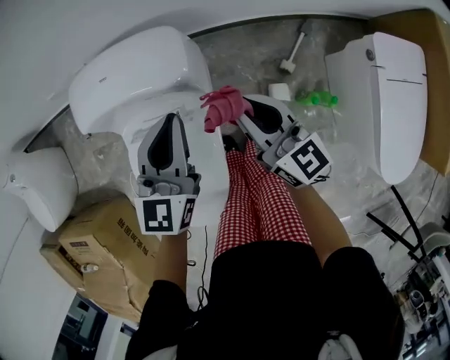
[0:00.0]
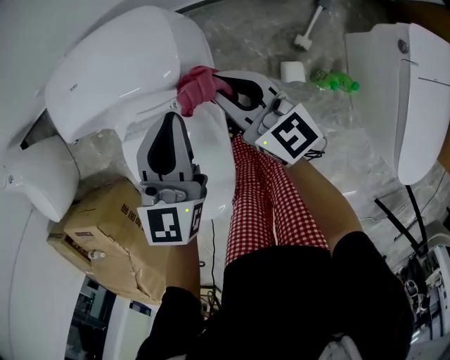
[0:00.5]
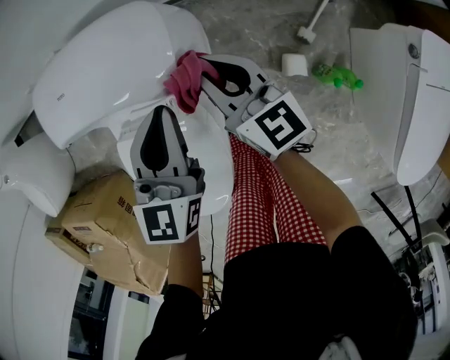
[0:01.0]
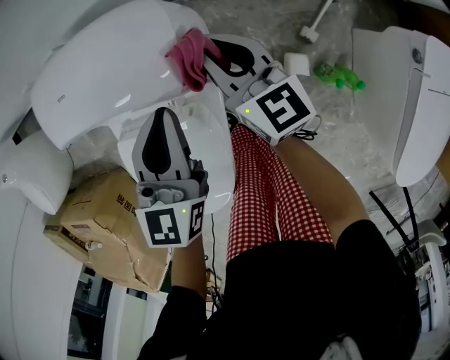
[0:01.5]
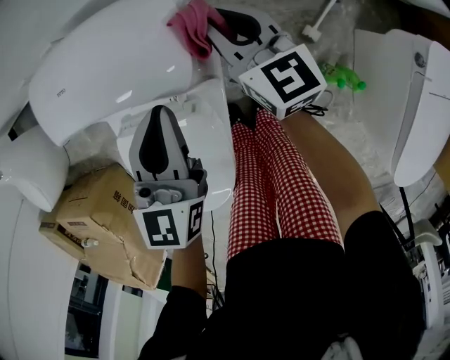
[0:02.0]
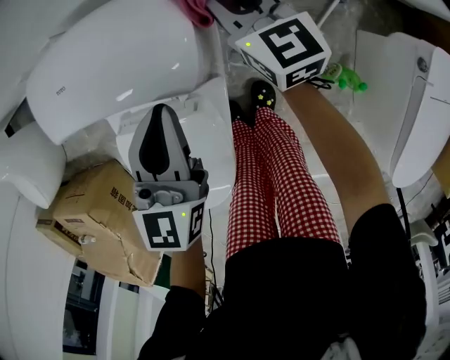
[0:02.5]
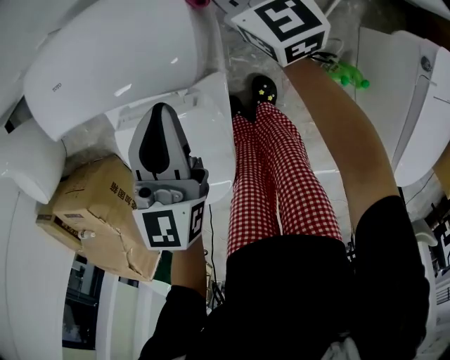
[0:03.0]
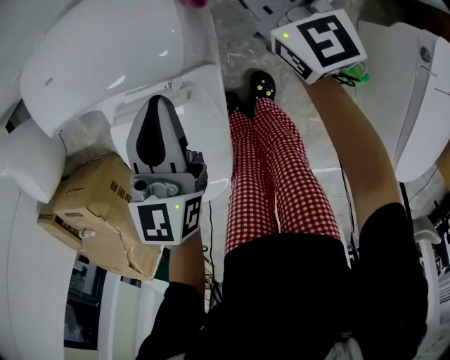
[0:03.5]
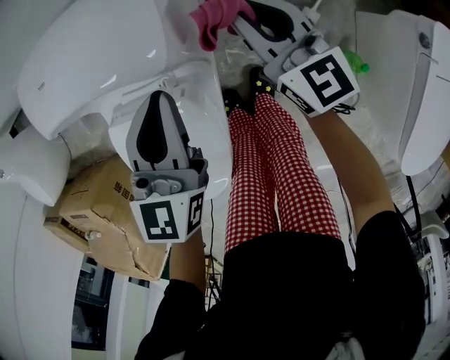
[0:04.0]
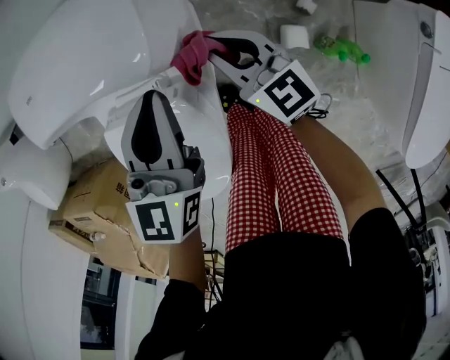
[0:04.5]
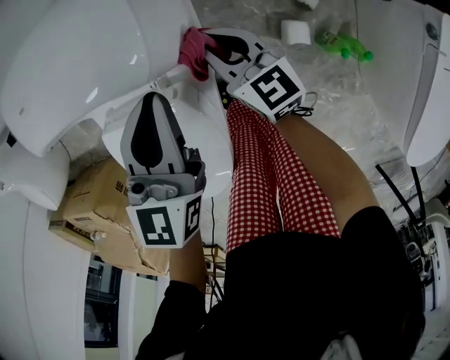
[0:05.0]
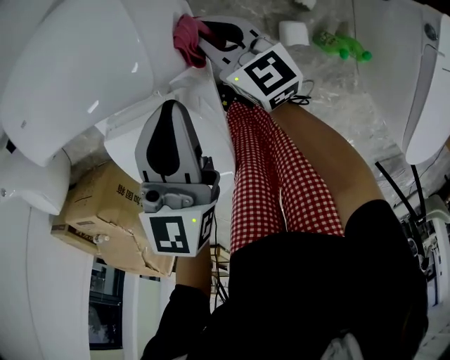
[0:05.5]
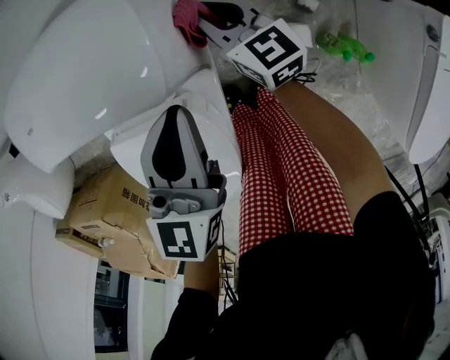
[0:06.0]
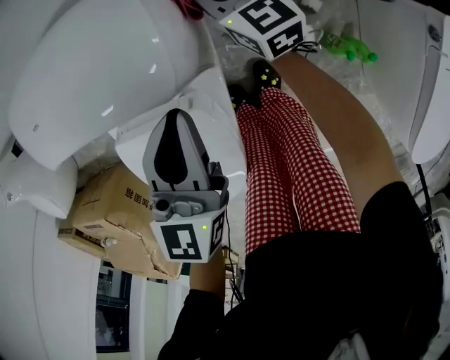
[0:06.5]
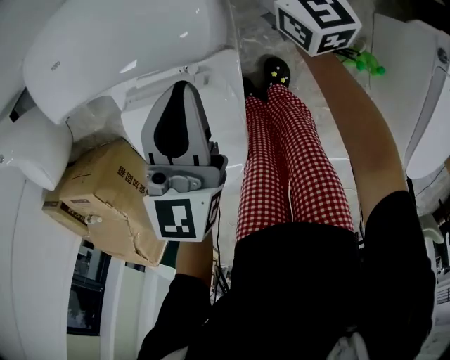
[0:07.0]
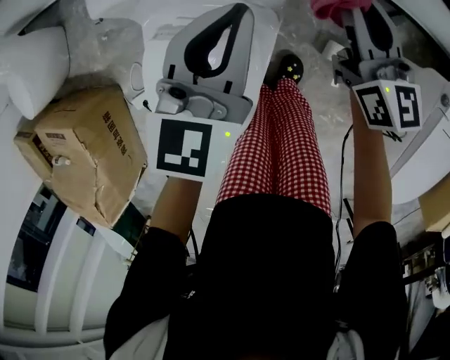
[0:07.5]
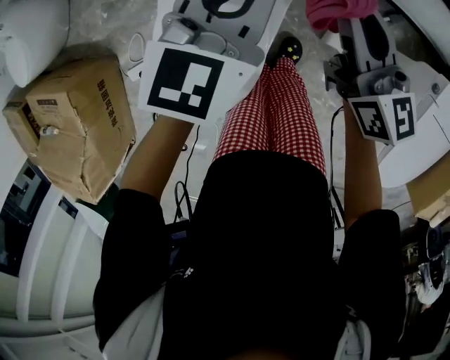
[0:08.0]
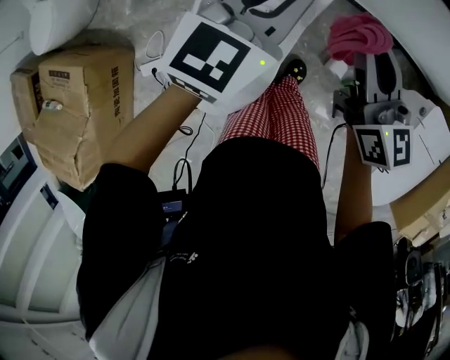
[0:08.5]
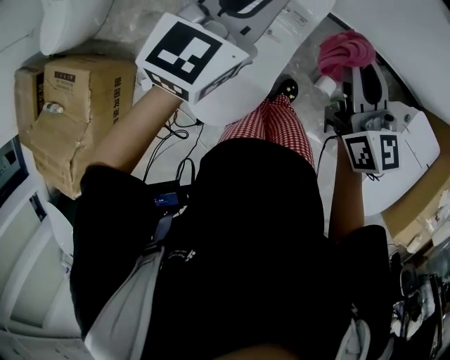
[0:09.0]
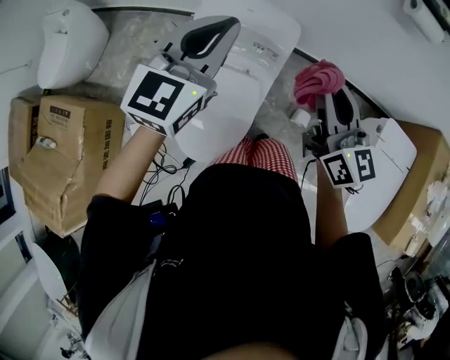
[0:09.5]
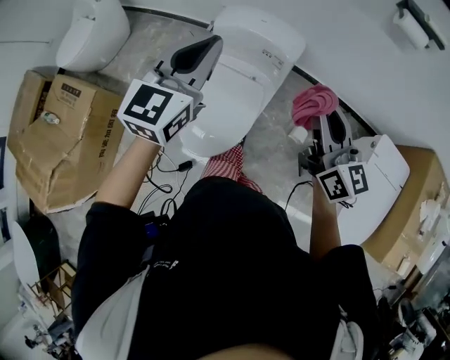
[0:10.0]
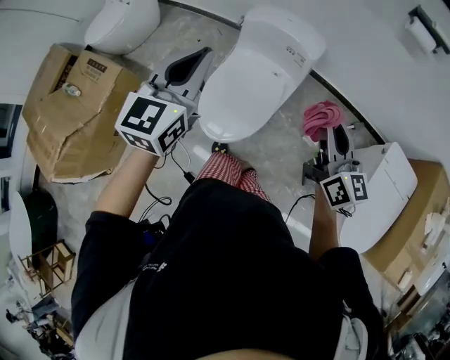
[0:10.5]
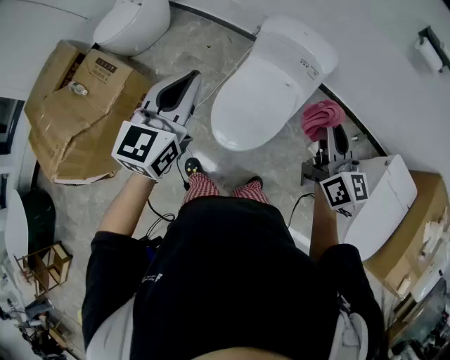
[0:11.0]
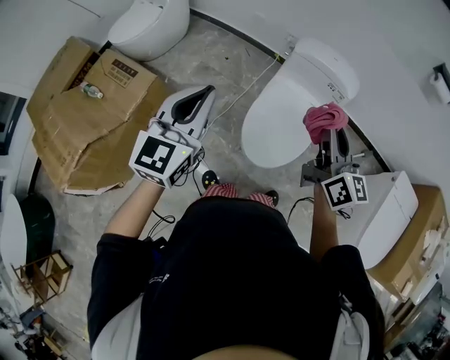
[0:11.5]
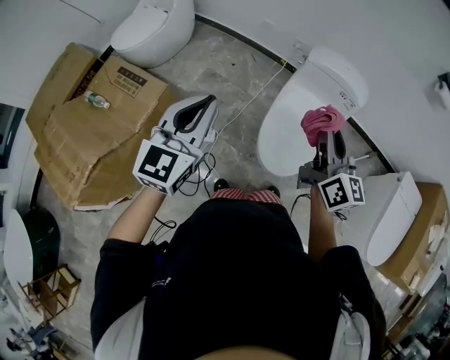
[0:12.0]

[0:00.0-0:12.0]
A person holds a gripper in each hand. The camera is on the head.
0:00.0 to 0:02.0: The right gripper goes roughly 20 cm forward and downward. Meanwhile the left gripper is displaced downward and forward by roughly 10 cm.
0:02.0 to 0:04.0: The right gripper shifts roughly 10 cm backward and to the right.
0:04.0 to 0:06.0: The right gripper travels downward and to the left by about 10 cm.
0:06.0 to 0:08.0: The right gripper goes roughly 30 cm upward. The left gripper goes some 15 cm upward.
0:08.0 to 0:10.0: The right gripper travels backward and upward by some 30 cm, while the left gripper travels upward, backward and to the left by about 35 cm.
0:10.0 to 0:12.0: The left gripper is displaced to the left and backward by roughly 40 cm. The right gripper heads to the left, covering about 35 cm.

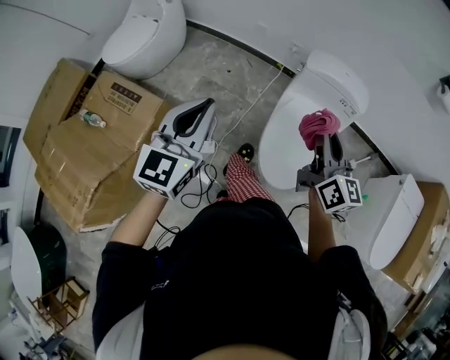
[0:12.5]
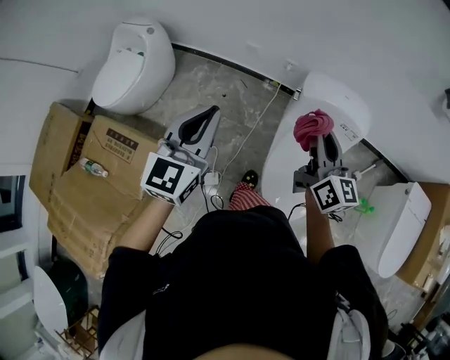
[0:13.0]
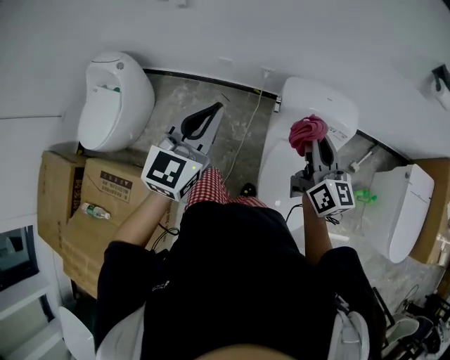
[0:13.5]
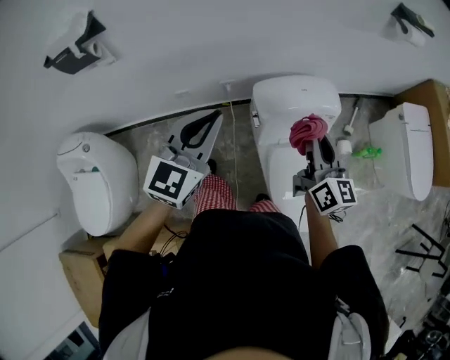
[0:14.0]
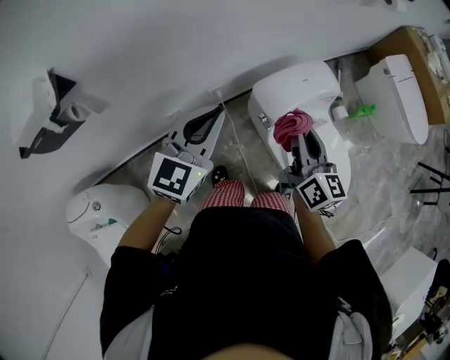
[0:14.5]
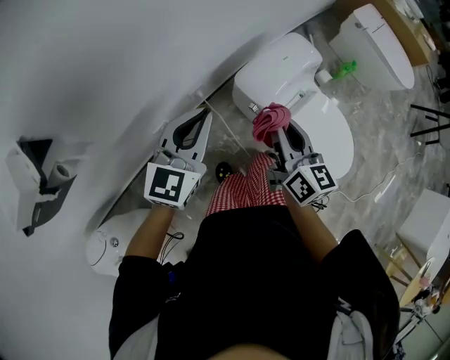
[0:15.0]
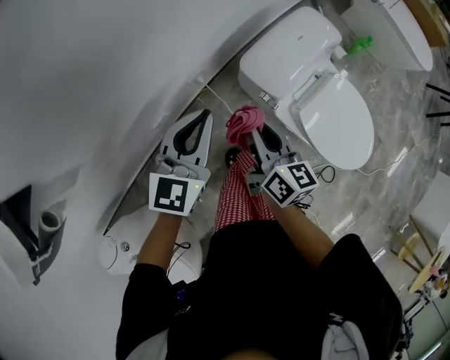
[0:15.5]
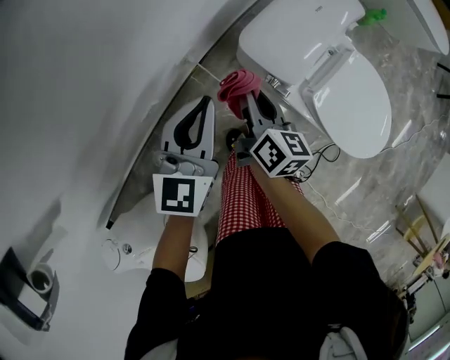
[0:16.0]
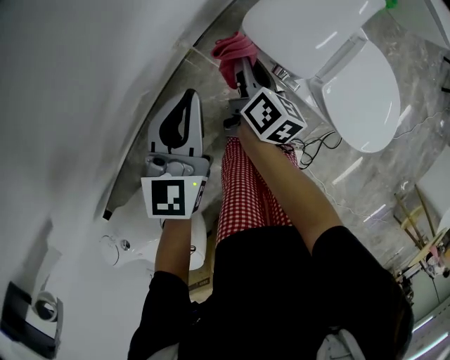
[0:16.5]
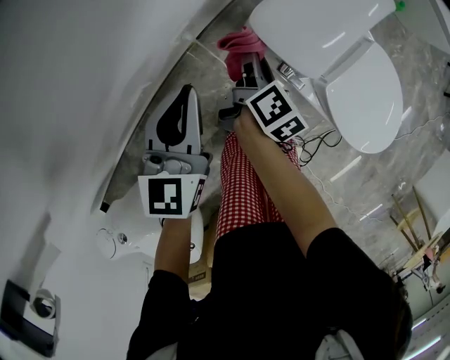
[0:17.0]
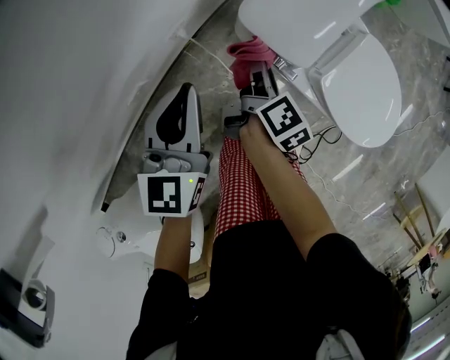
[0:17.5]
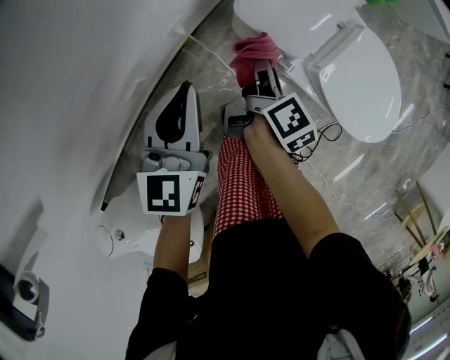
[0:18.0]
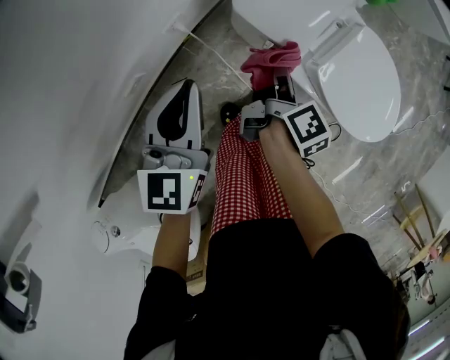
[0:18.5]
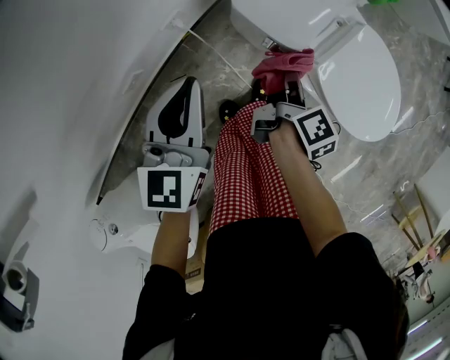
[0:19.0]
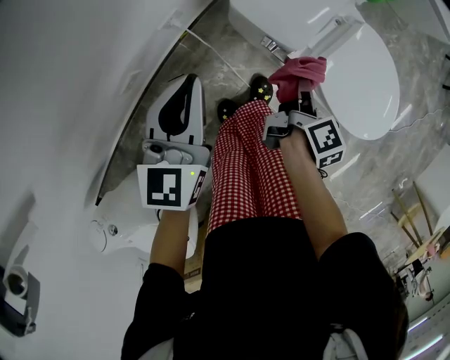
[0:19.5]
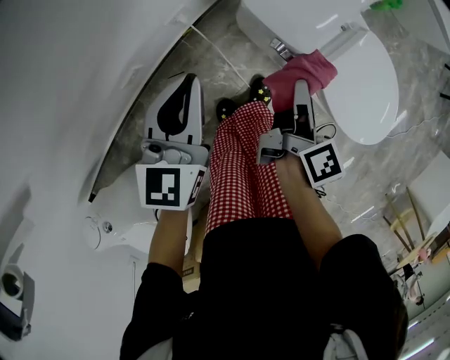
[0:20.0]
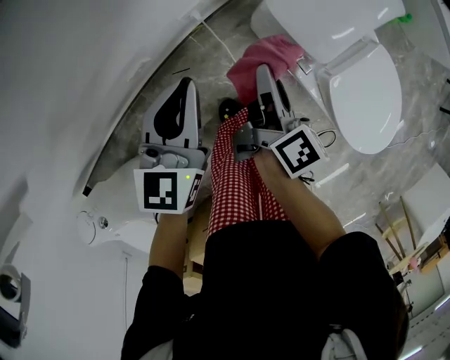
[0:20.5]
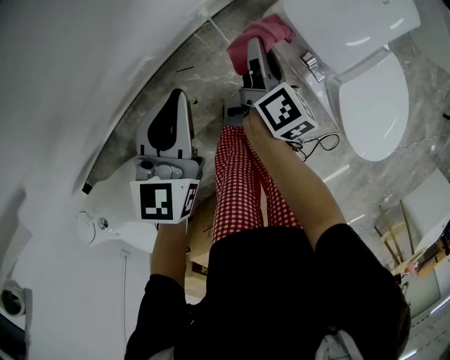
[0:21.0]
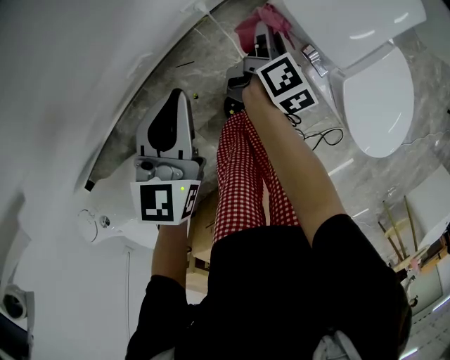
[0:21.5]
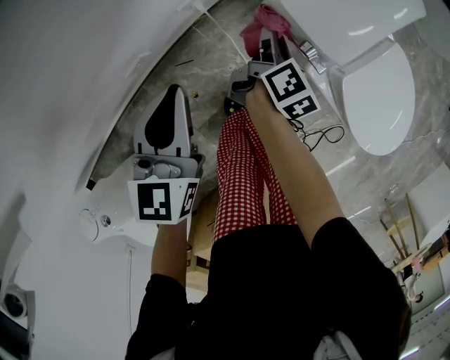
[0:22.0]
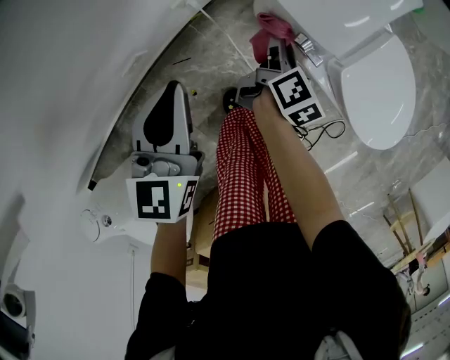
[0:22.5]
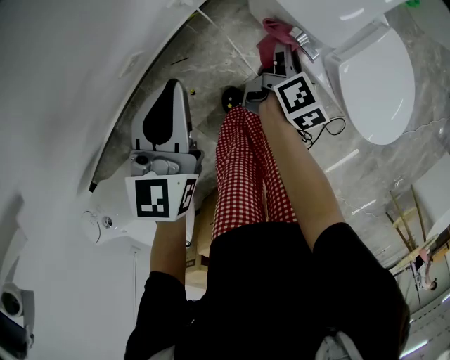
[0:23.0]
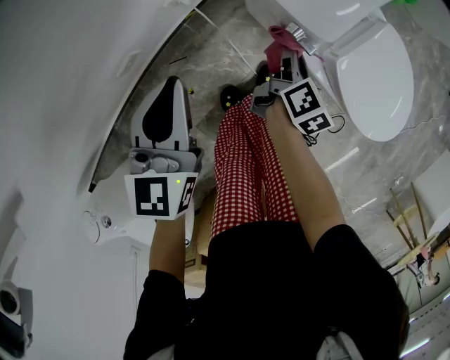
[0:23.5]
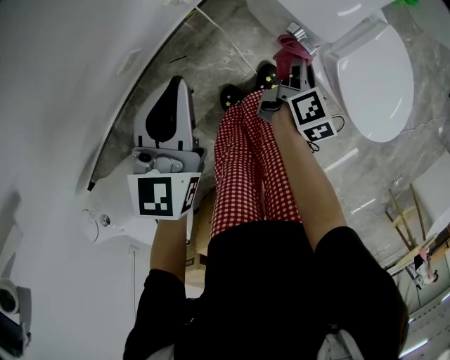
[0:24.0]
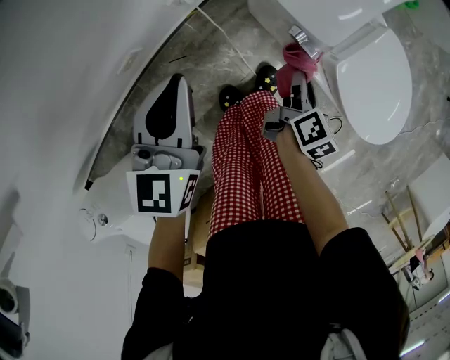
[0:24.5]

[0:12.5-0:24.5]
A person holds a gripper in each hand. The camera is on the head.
0:12.5 to 0:14.5: The right gripper shifts by about 35 cm, and changes its angle by roughly 50 degrees. The left gripper moves approximately 60 cm, and changes its angle by about 60 degrees.
0:14.5 to 0:16.5: Both grippers travel together downward, roughly 30 cm. The right gripper rotates some 50 degrees.
0:16.5 to 0:18.5: The right gripper heads to the right and backward, covering some 10 cm, and swivels approximately 30 degrees; the left gripper ends up some 5 cm from where it was.
0:18.5 to 0:20.5: The left gripper moves about 5 cm, while the right gripper travels to the left and upward by approximately 10 cm, and swivels some 30 degrees.
0:20.5 to 0:22.5: The right gripper is displaced downward by roughly 15 cm, and changes its angle by some 20 degrees.
0:22.5 to 0:24.5: The right gripper moves to the right and backward, approximately 10 cm.

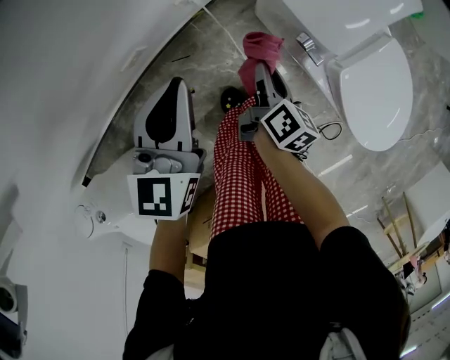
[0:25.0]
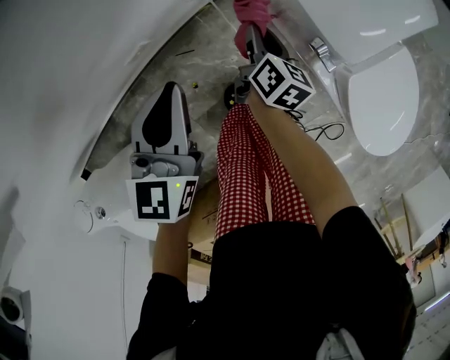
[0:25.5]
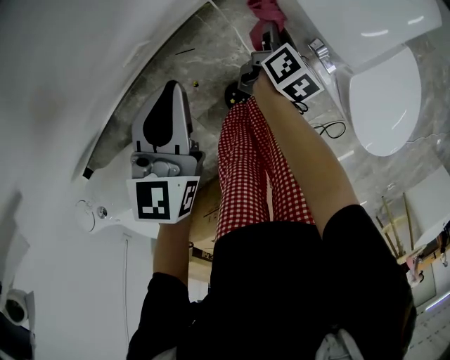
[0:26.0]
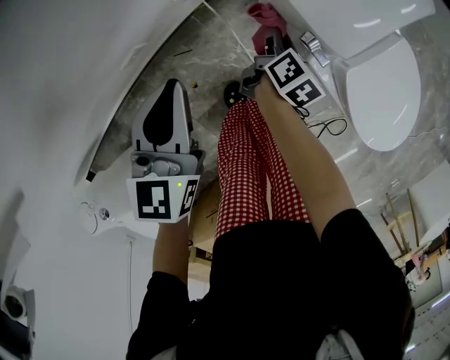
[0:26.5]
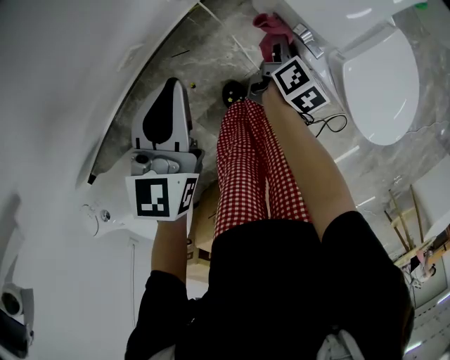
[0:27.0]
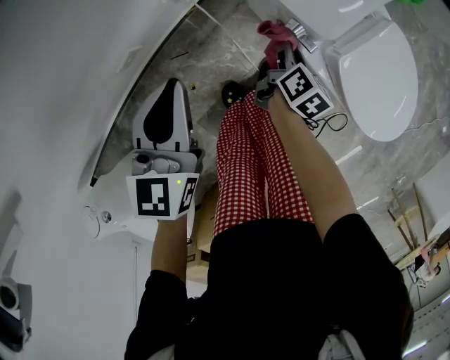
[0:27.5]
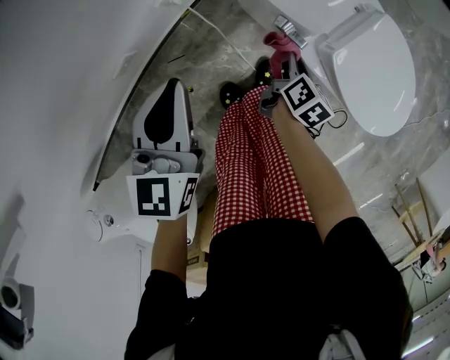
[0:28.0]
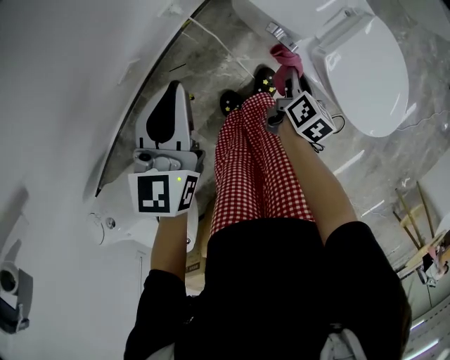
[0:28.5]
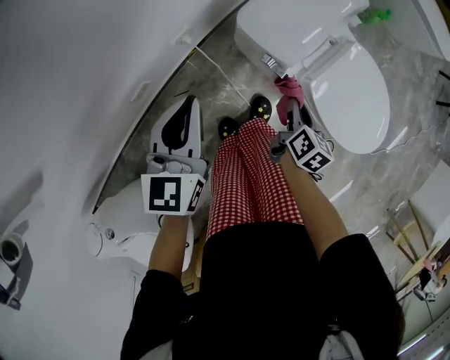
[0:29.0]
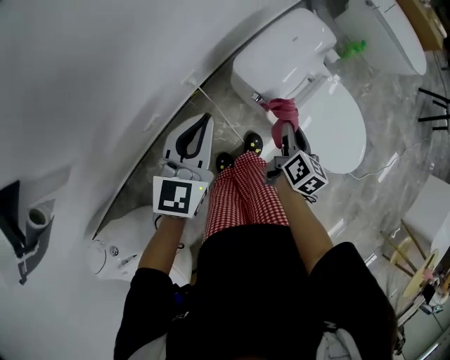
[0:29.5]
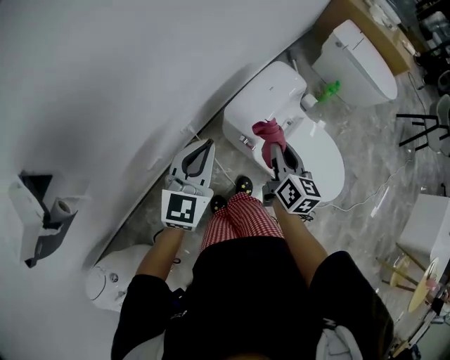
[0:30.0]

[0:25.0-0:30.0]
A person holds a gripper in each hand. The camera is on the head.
0:25.0 to 0:27.5: The right gripper shifts roughly 10 cm to the right.
0:27.5 to 0:30.0: The left gripper shifts approximately 20 cm upward, and changes its angle by roughly 30 degrees, while the right gripper is displaced upward by approximately 35 cm, and changes its angle by approximately 30 degrees.
